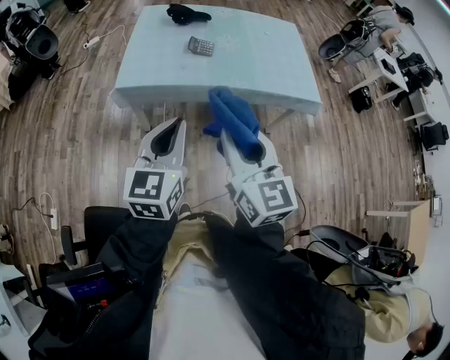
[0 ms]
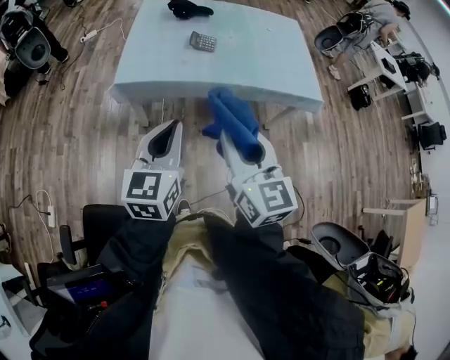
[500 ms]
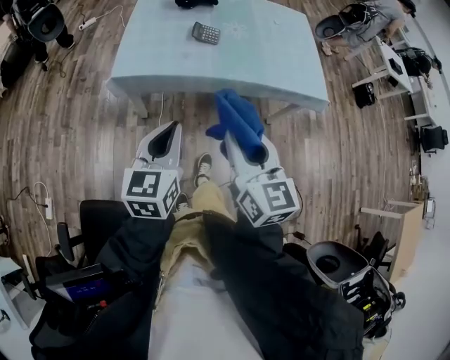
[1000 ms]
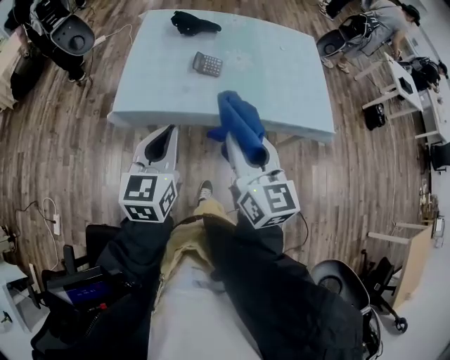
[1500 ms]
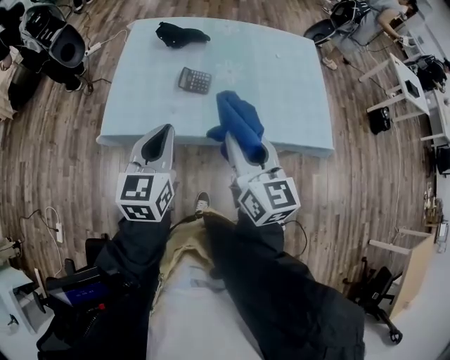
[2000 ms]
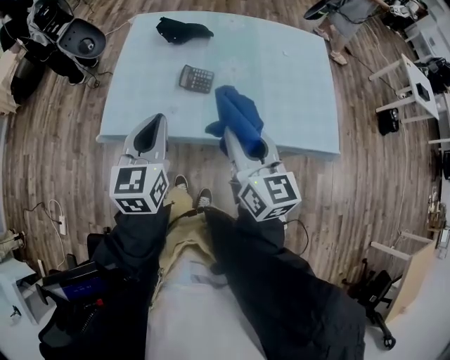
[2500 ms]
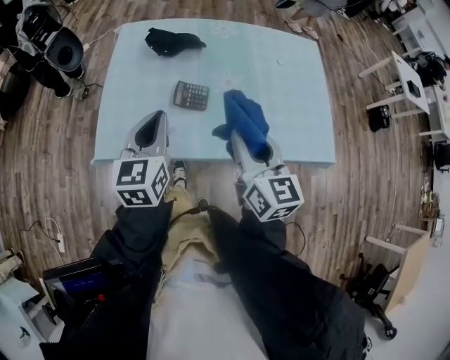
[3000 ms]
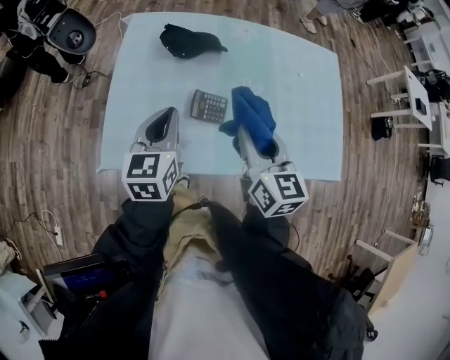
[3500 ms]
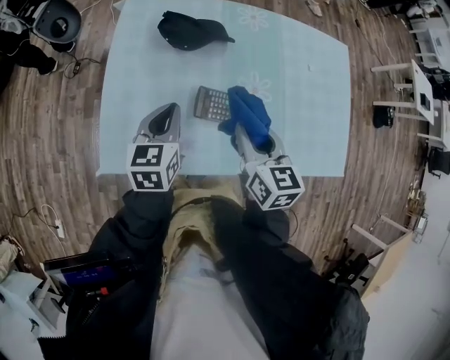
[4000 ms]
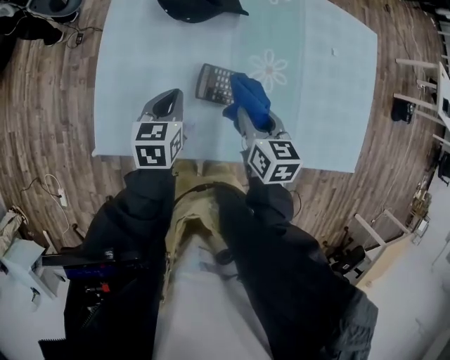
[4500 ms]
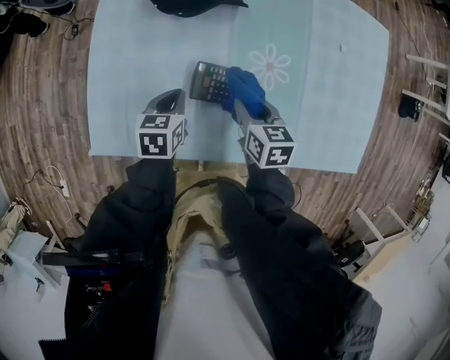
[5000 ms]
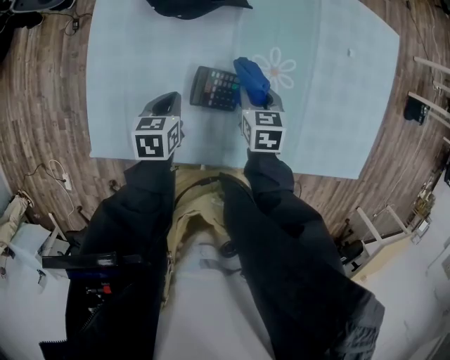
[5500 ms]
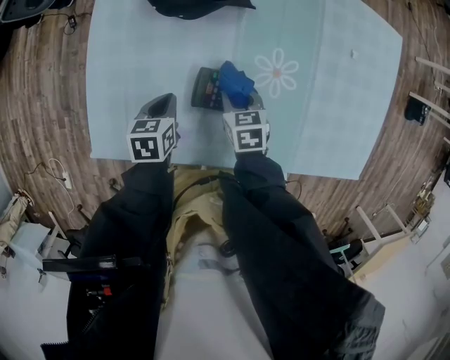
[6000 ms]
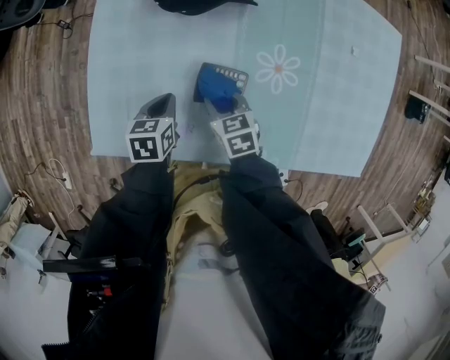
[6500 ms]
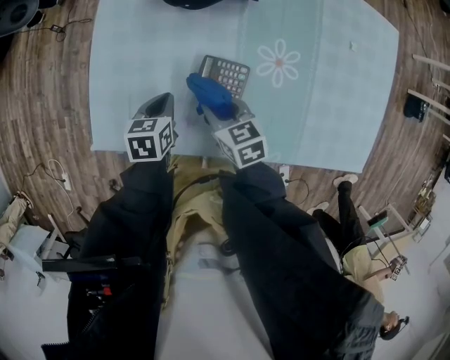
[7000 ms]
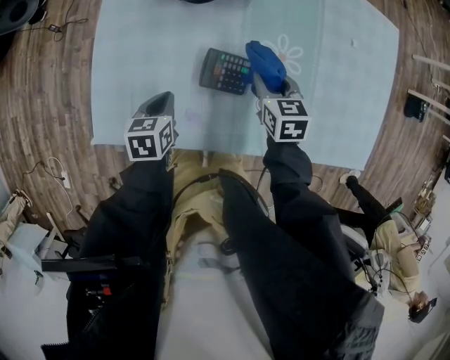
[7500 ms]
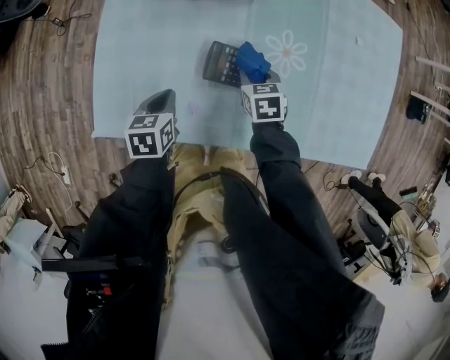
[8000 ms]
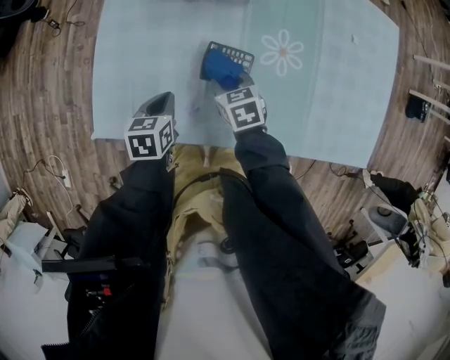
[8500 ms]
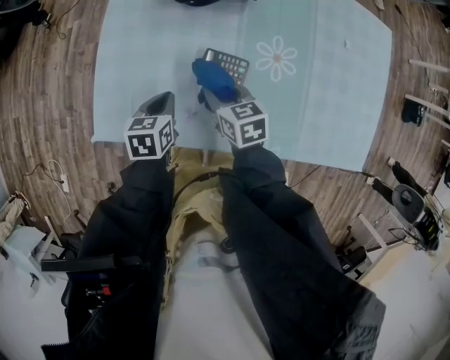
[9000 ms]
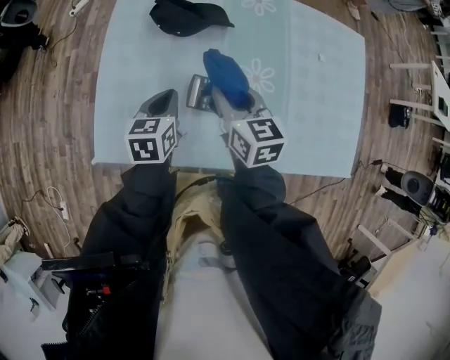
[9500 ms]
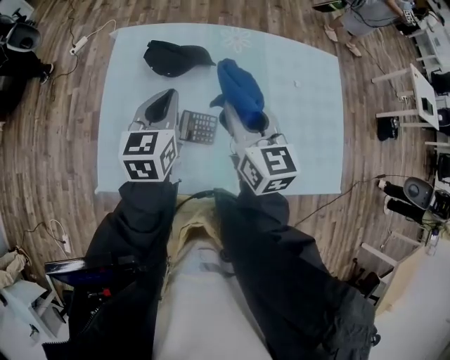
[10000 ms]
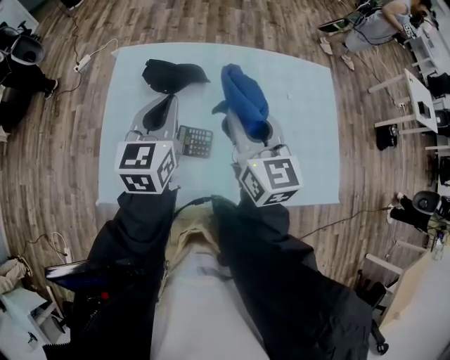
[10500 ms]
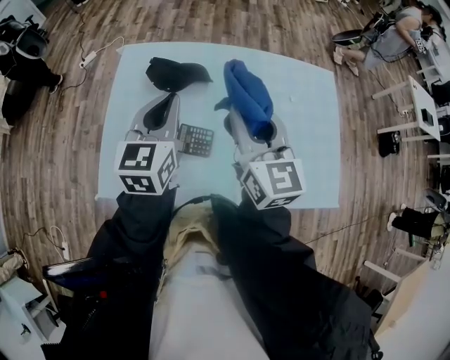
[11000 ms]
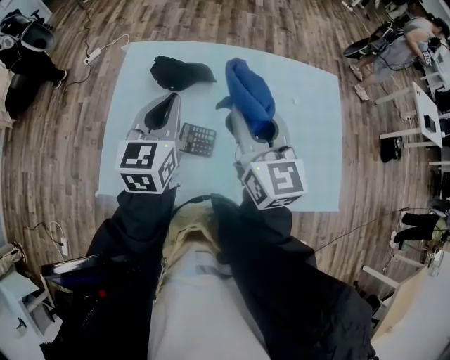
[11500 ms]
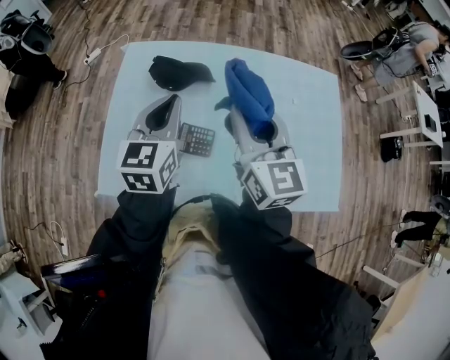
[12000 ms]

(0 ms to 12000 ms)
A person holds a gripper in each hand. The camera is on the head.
0 ms - 2000 ms: Both grippers travel together forward, about 30 cm.
2000 ms - 4000 ms: The grippers both shift forward and downward by roughly 30 cm. The right gripper changes its angle by approximately 20 degrees.
4000 ms - 6000 ms: Both grippers move downward, some 20 cm. The right gripper turns by about 30 degrees; the left gripper rotates roughly 30 degrees.
6000 ms - 8000 ms: The right gripper goes to the left and returns, approximately 5 cm each way. The left gripper heads backward, covering roughly 5 cm.
8000 ms - 10000 ms: The right gripper goes about 35 cm upward, and points its fingers approximately 40 degrees further upward. The left gripper is displaced upward, forward and to the right by approximately 30 cm, and tips its fingers upward by approximately 30 degrees.
10000 ms - 12000 ms: Both grippers move upward, some 5 cm.

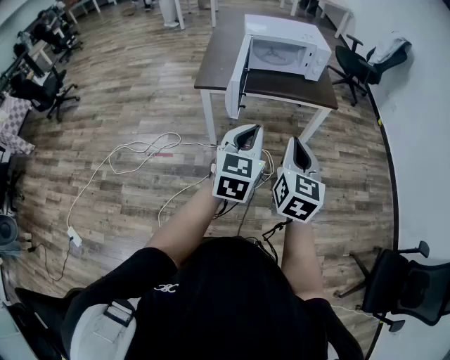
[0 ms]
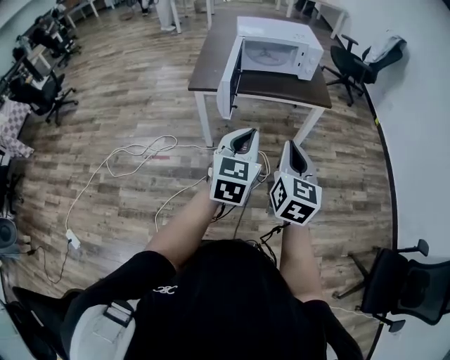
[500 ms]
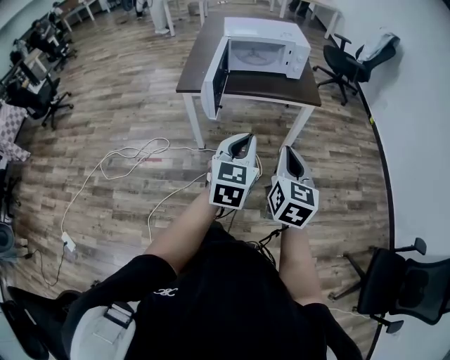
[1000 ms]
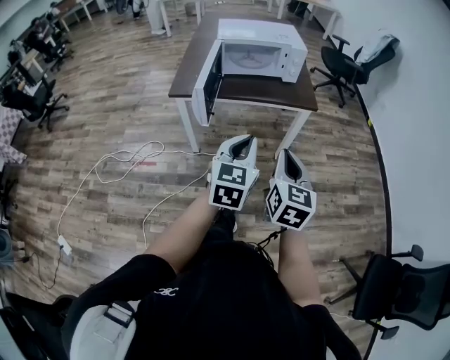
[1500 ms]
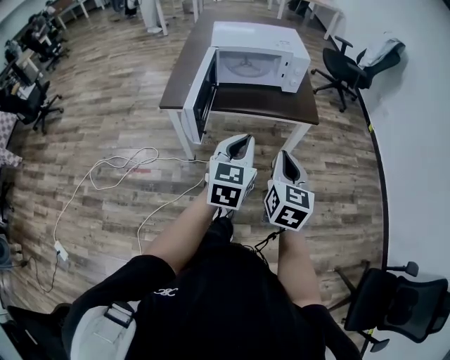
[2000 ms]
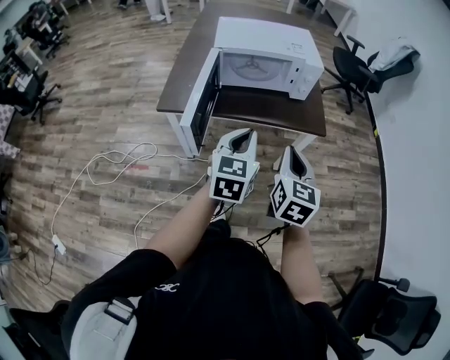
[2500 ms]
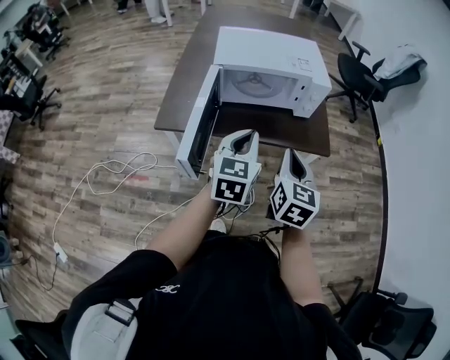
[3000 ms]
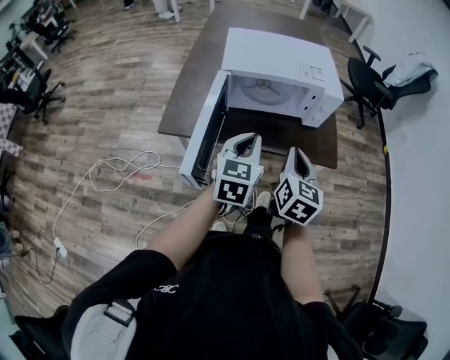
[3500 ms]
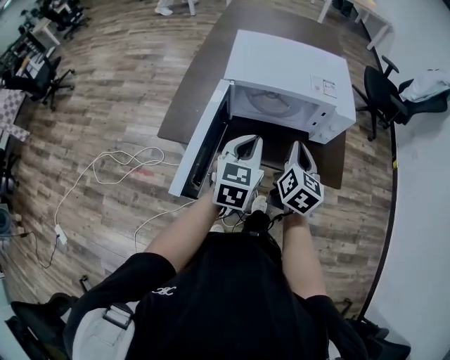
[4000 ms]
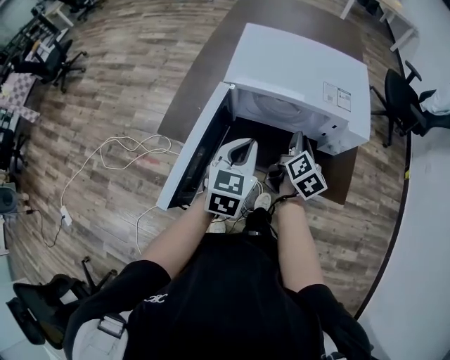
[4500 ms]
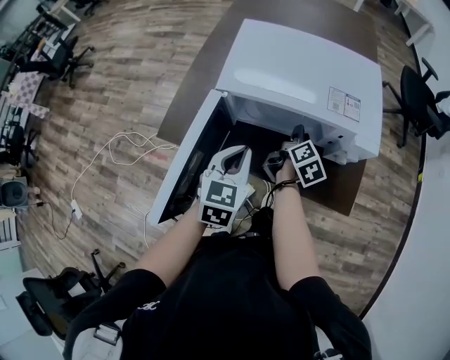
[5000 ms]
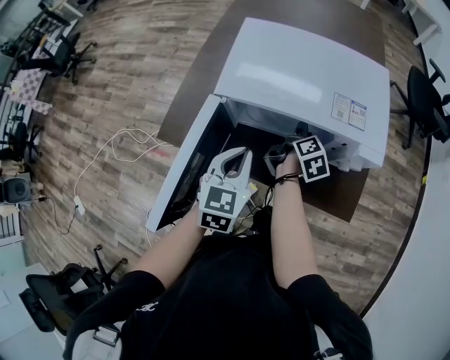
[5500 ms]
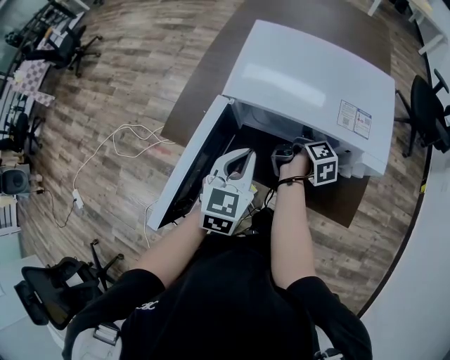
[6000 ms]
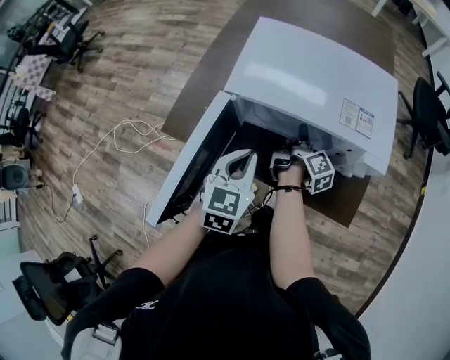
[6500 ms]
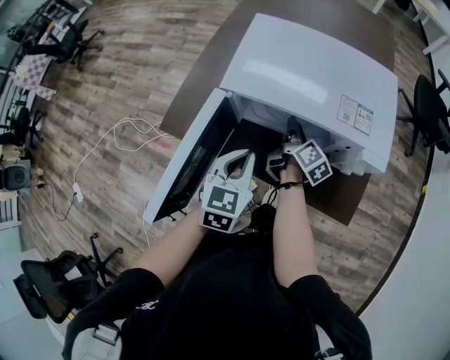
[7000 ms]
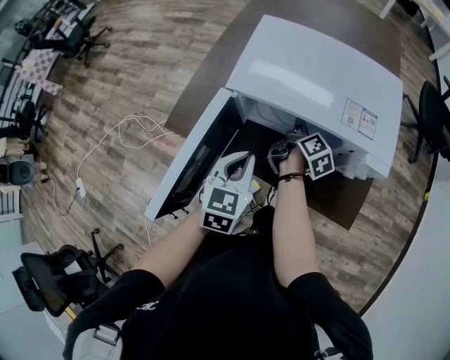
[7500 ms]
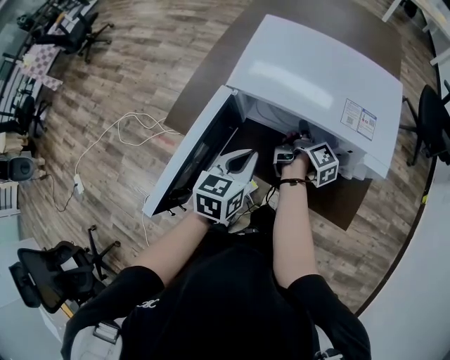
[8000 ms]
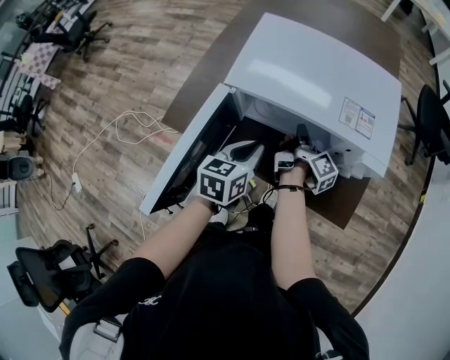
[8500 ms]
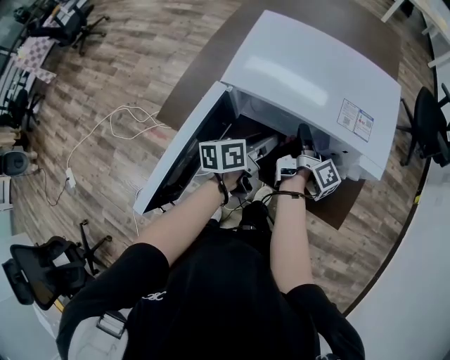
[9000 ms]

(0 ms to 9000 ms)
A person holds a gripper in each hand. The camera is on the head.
0 ms - 2000 ms: Both grippers move forward and to the right, roughly 20 cm.
2000 ms - 4500 ms: Both grippers travel together forward, roughly 40 cm. The right gripper rotates about 30 degrees.
4500 ms - 7000 ms: The right gripper is displaced forward, downward and to the left by about 15 cm, and changes its angle by about 30 degrees. The left gripper is displaced downward by approximately 5 cm.
7000 ms - 9000 ms: The left gripper is displaced forward and downward by approximately 10 cm, twists approximately 50 degrees counterclockwise, seen from behind, and opens; the right gripper rotates some 30 degrees, and closes.

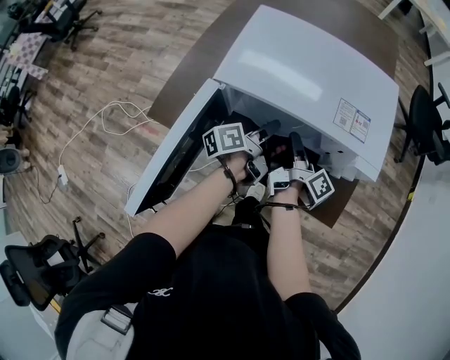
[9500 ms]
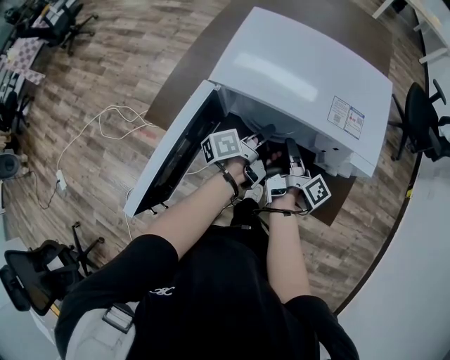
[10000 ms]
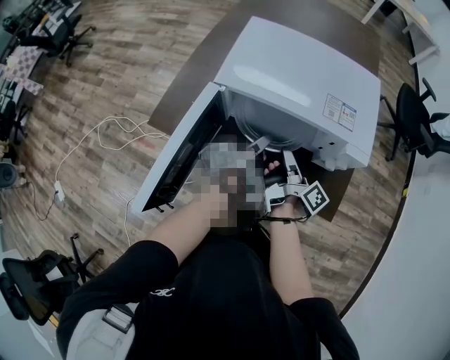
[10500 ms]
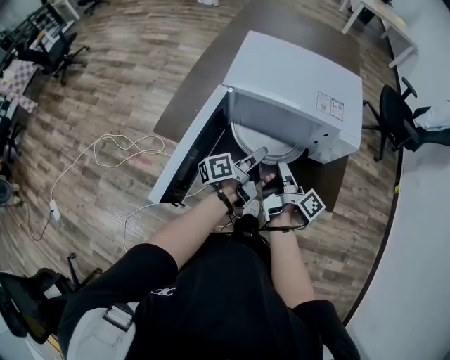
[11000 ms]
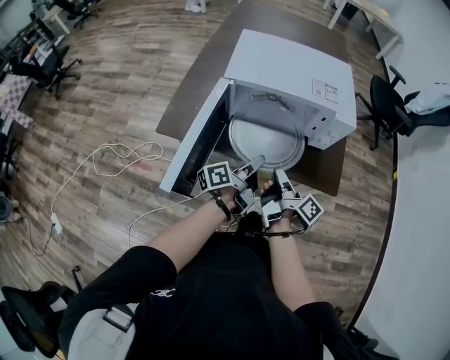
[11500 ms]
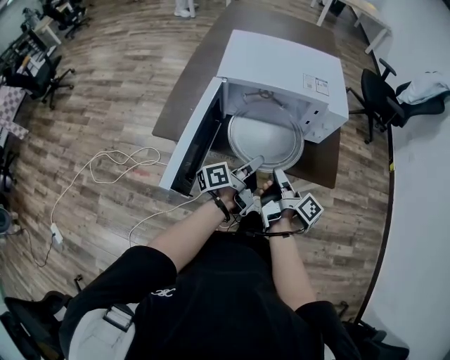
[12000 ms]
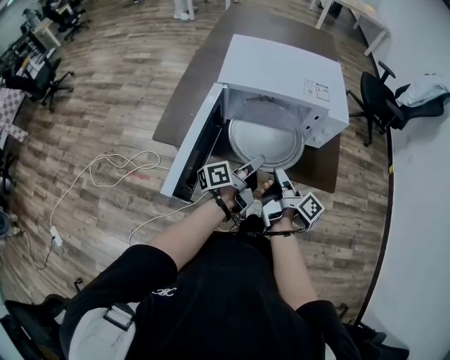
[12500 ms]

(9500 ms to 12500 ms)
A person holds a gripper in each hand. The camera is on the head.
9500 ms - 11000 ms: The right gripper travels backward by about 15 cm. Meanwhile the left gripper shifts roughly 15 cm backward and upward, and closes up.
11000 ms - 12500 ms: Both grippers move backward, about 5 cm.

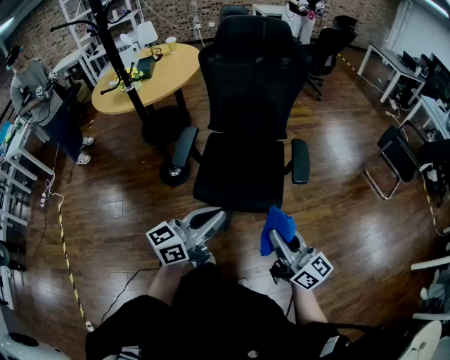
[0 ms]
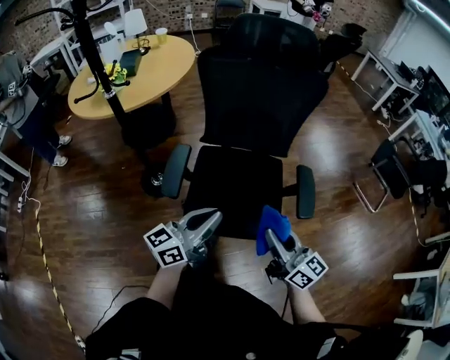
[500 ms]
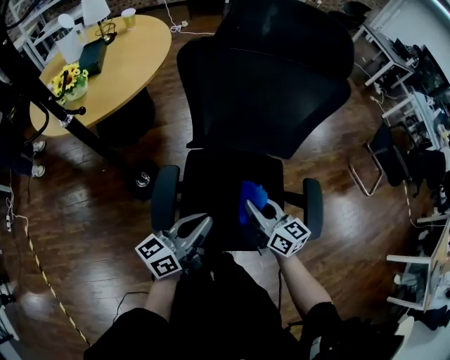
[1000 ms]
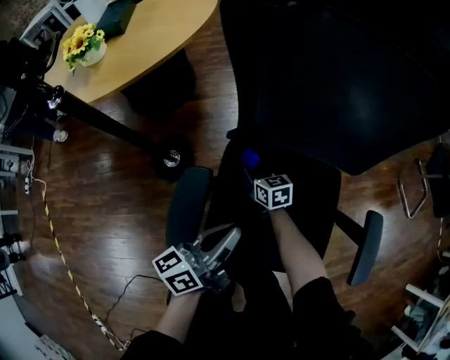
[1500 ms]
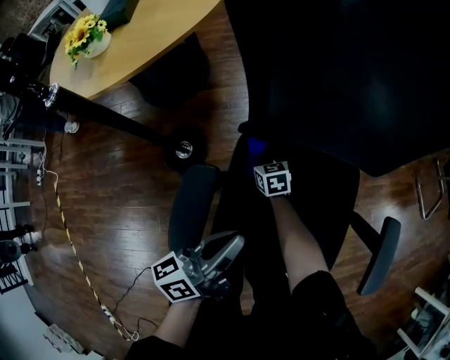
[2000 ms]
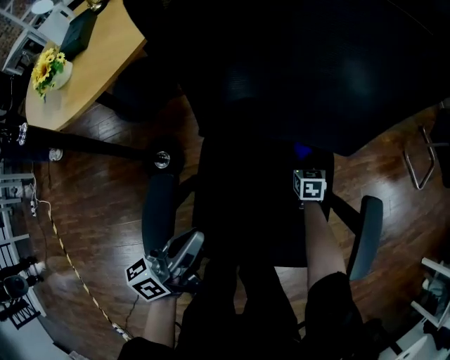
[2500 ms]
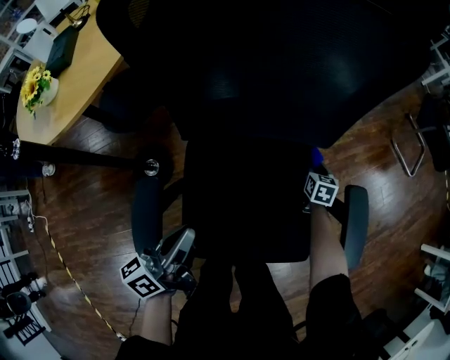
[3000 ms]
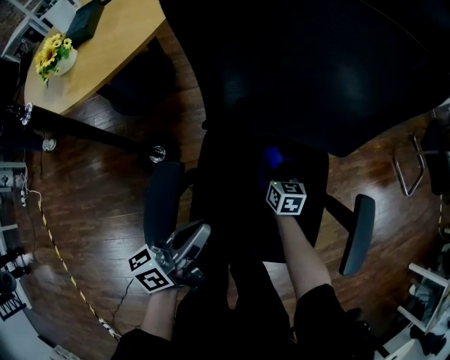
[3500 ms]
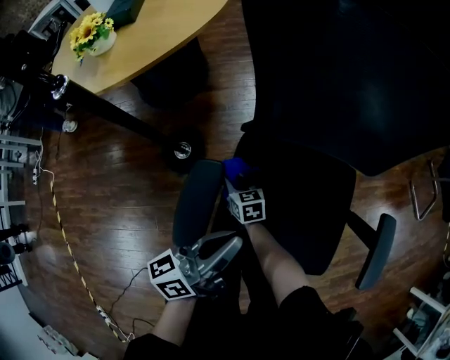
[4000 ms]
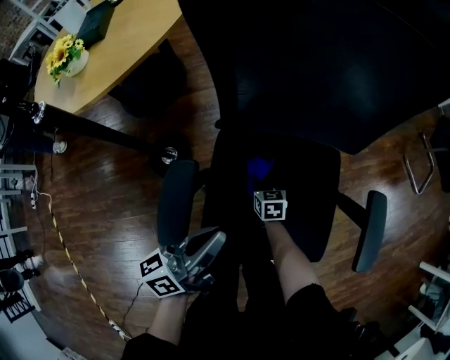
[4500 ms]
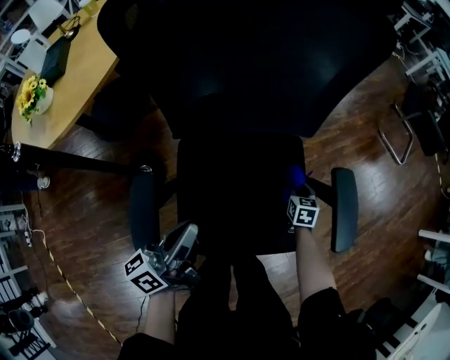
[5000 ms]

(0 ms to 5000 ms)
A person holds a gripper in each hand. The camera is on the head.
0 ms - 2500 ms: Both grippers are carried forward, roughly 50 cm. The right gripper heads downward, covering some 50 cm, and tilts its fingers about 60 degrees downward; the left gripper is displaced downward by approximately 20 cm, and swivels about 30 degrees.
